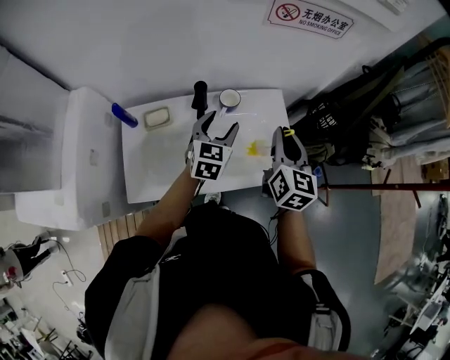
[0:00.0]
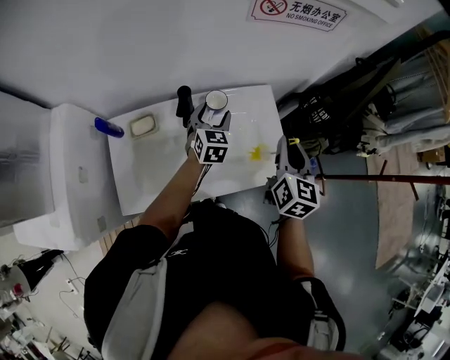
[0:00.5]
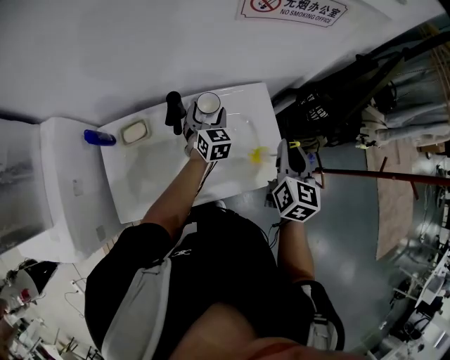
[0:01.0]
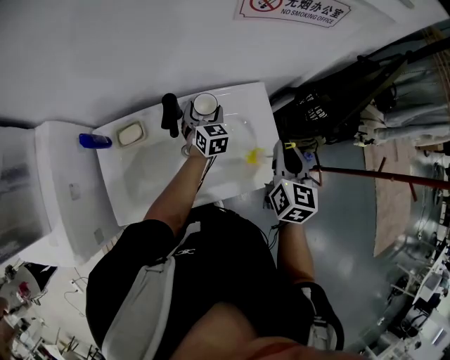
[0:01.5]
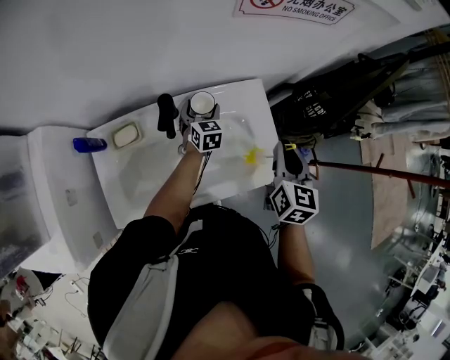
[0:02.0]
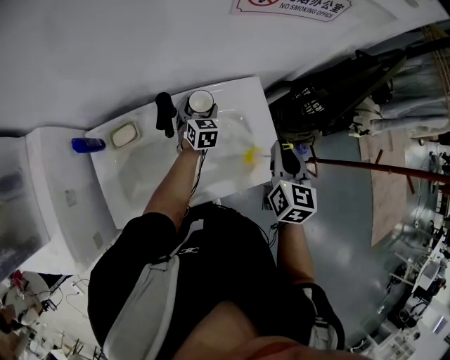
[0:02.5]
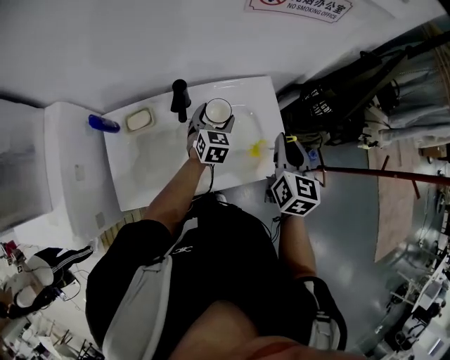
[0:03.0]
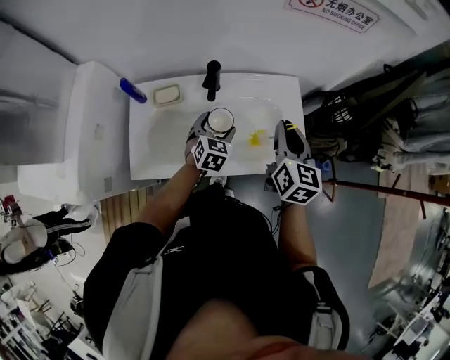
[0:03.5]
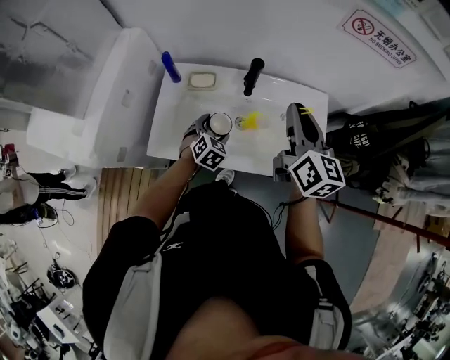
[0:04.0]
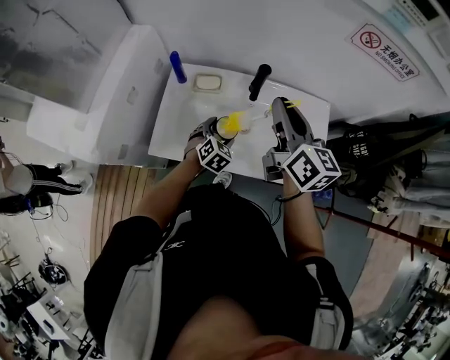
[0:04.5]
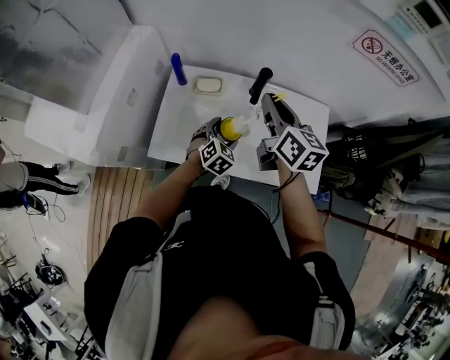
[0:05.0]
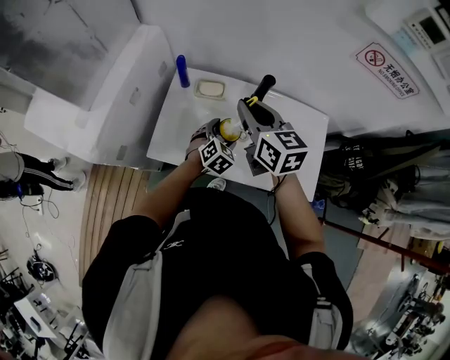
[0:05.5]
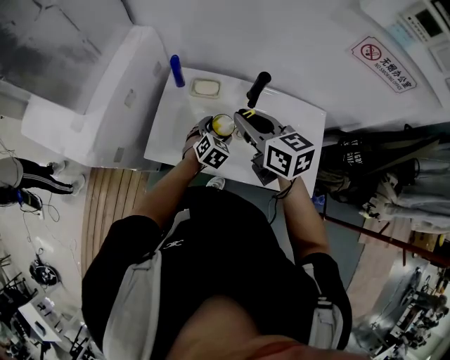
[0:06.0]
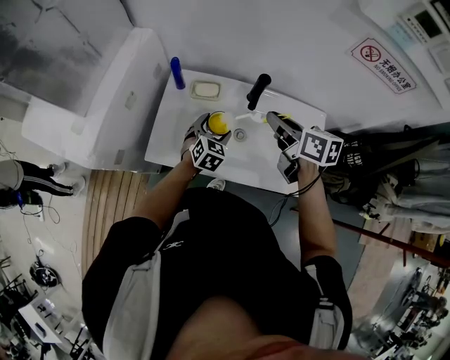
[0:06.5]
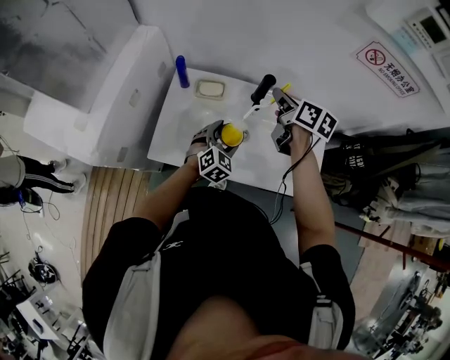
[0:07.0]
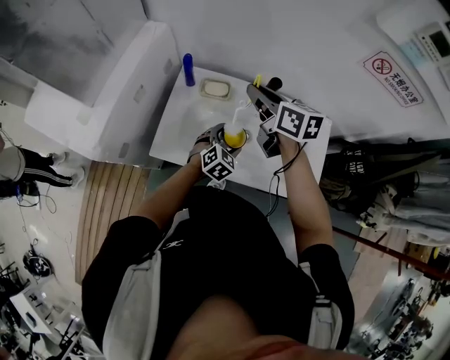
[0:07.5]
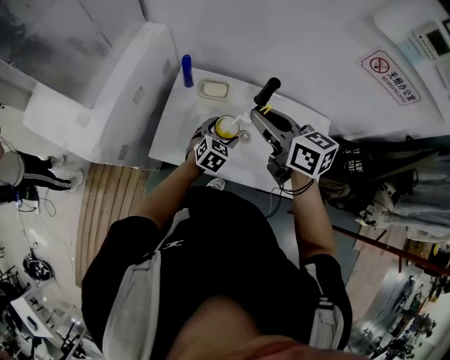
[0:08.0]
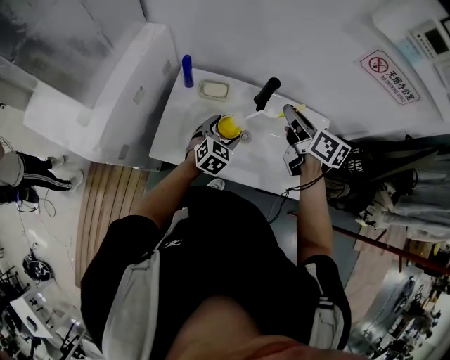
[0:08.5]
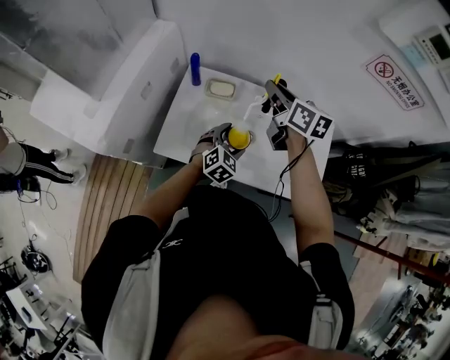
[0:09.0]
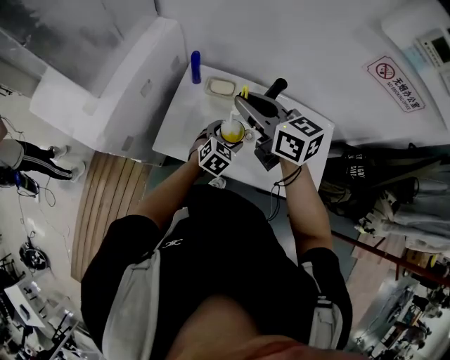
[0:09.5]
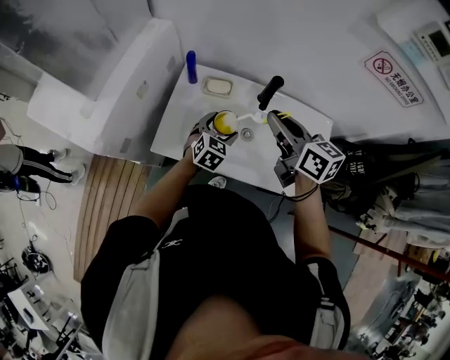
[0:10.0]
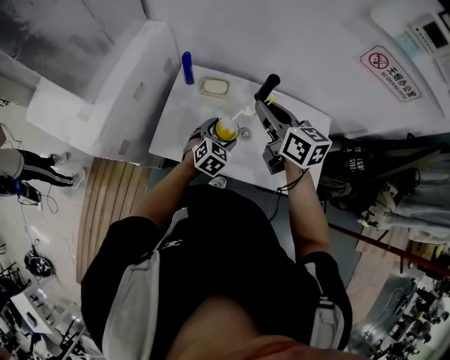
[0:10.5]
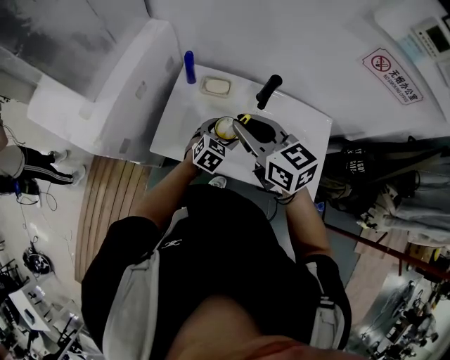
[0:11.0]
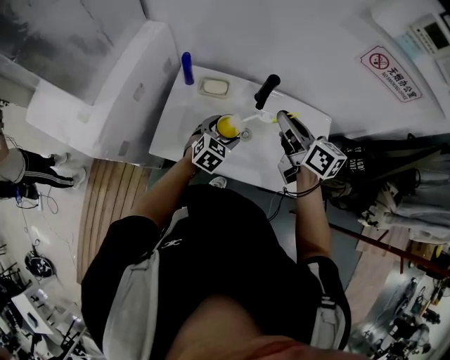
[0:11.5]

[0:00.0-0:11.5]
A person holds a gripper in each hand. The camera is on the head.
0:00.0 to 0:02.0: The left gripper travels downward and forward by some 20 cm. The right gripper goes approximately 10 cm to the right and downward.
0:02.0 to 0:04.0: The left gripper travels backward and to the left by about 30 cm, and swivels approximately 20 degrees. The right gripper travels to the left and upward by roughly 20 cm, and changes its angle by some 40 degrees.
0:04.0 to 0:06.0: The right gripper travels to the left by some 15 cm, and swivels some 40 degrees.
0:06.0 to 0:07.5: The right gripper goes approximately 10 cm forward, and goes to the right and returns, some 10 cm each way.
0:07.5 to 0:09.5: The right gripper shifts roughly 5 cm backward, and travels to the right and back again, about 10 cm each way.
0:09.5 to 0:11.5: The right gripper swings left and right, roughly 15 cm each way, with 2 reversals, and rotates approximately 30 degrees.

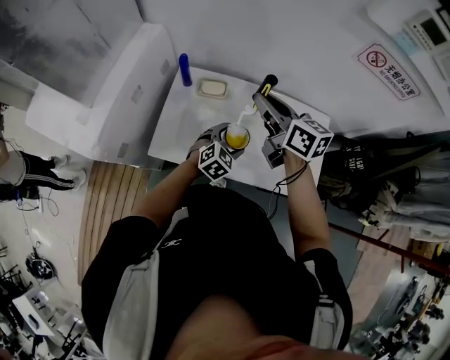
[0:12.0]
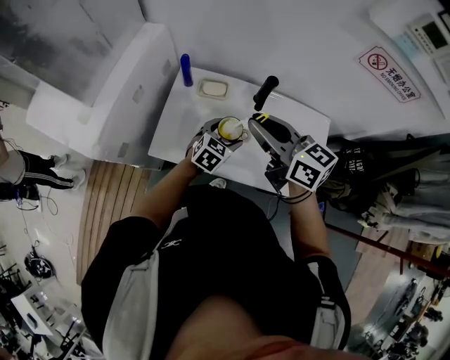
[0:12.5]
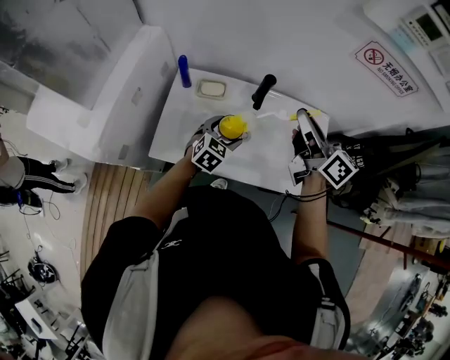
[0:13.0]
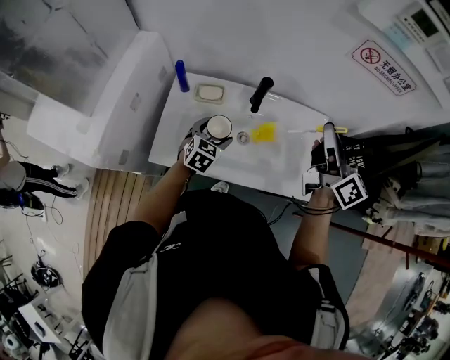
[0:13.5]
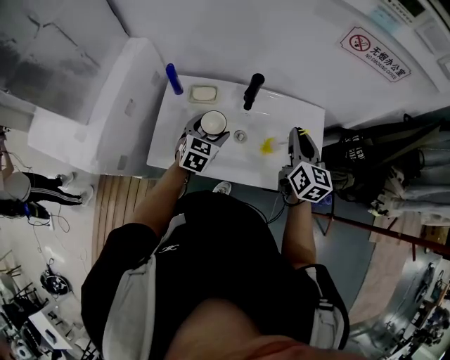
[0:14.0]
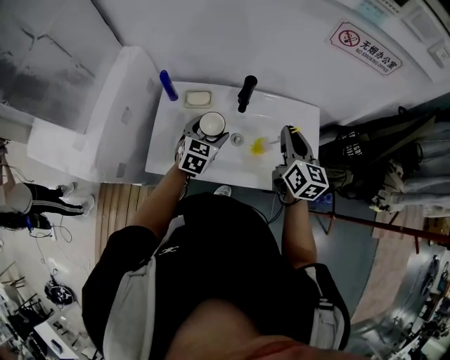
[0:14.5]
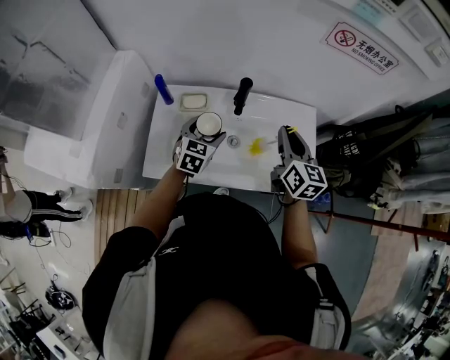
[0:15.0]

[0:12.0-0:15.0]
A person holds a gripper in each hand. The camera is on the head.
0:12.0 to 0:13.5: The right gripper travels to the right by some 20 cm, and changes its angle by about 30 degrees; the left gripper goes roughly 5 cm to the left.
0:13.5 to 0:15.0: The right gripper moves downward, about 10 cm, and rotates approximately 30 degrees.

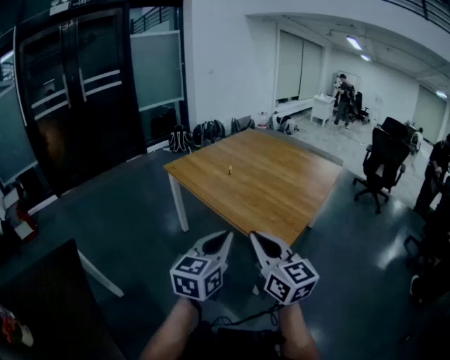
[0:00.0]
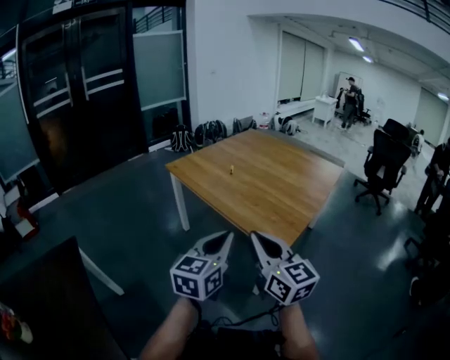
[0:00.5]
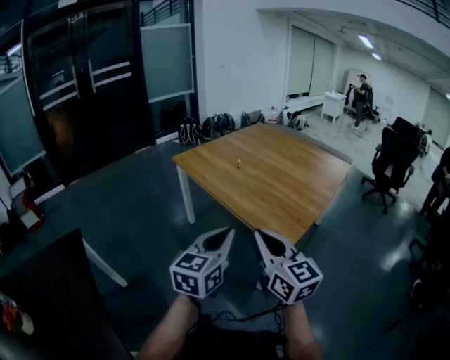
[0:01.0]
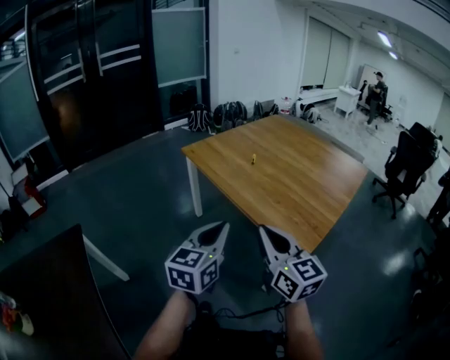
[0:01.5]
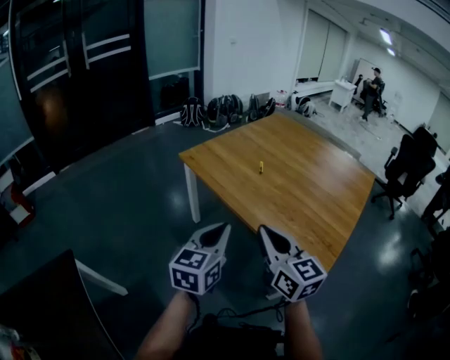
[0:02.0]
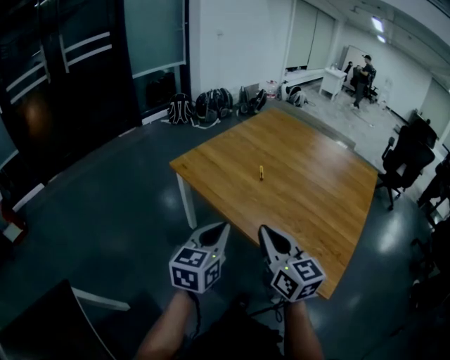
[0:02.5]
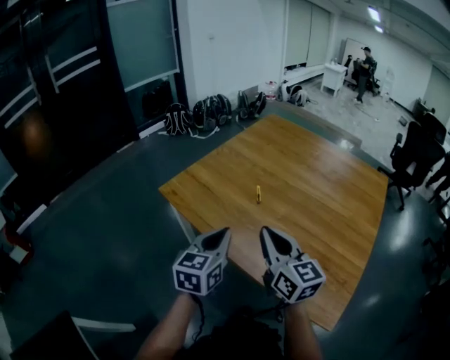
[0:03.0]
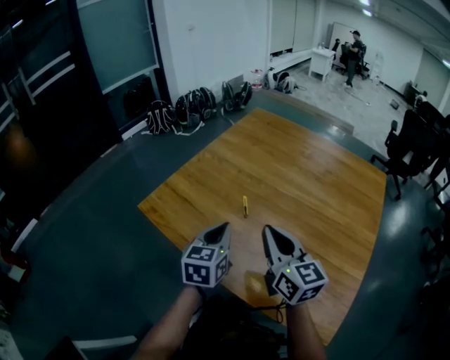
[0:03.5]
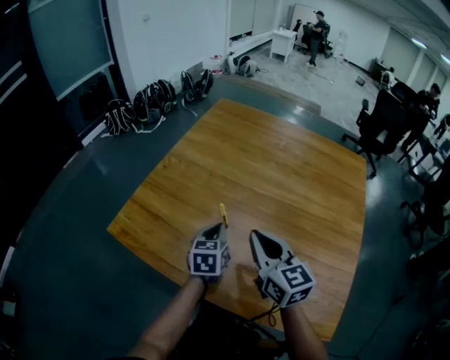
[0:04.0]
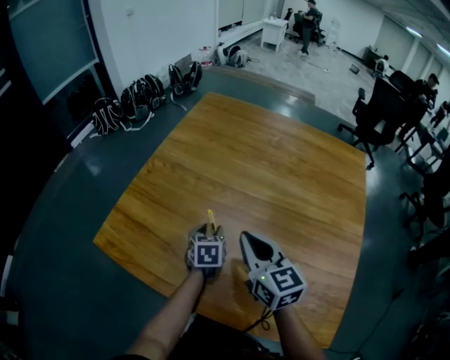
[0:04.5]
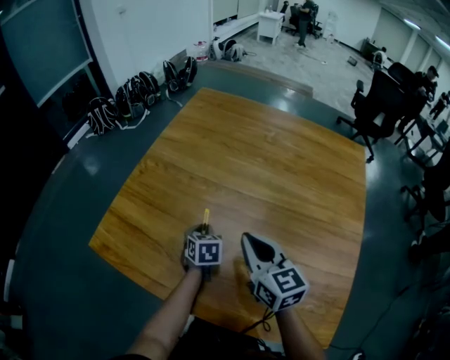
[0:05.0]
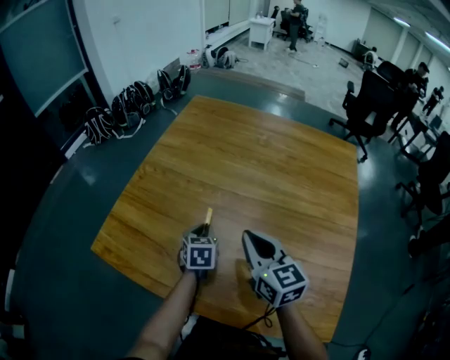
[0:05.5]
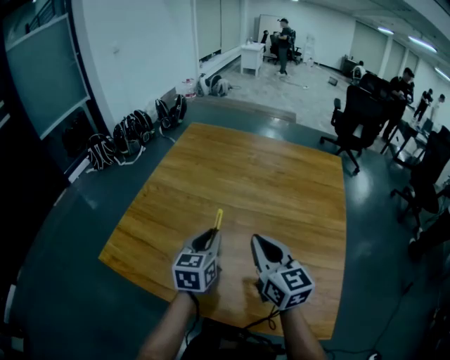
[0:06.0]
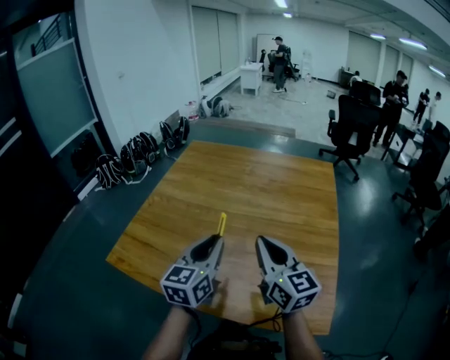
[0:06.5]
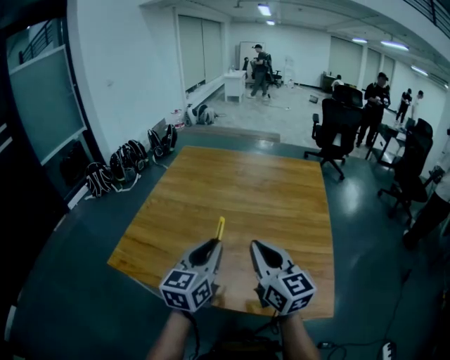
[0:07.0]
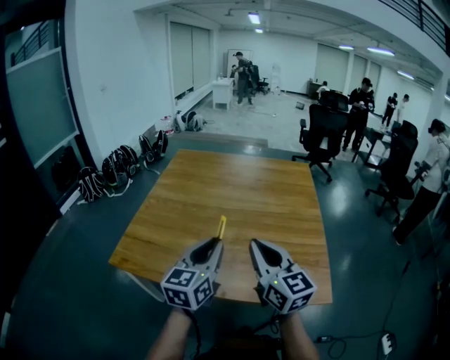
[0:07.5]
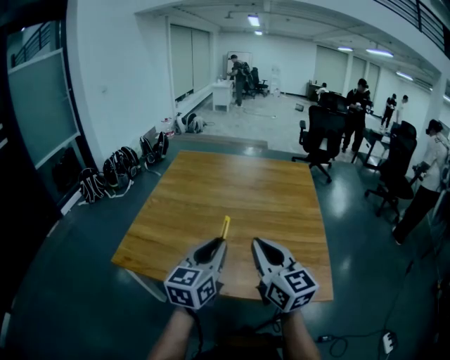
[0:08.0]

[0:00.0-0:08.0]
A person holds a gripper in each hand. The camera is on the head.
0:00.0 to 0:02.0: Both grippers move forward and to the left, roughly 25 cm.
0:02.0 to 0:04.0: The pair of grippers is taken forward, approximately 40 cm. The left gripper changes its angle by about 30 degrees. Meanwhile the right gripper turns by some 20 degrees.
0:04.0 to 0:06.0: The left gripper moves upward and to the right, approximately 10 cm, and opens, then closes again. The right gripper heads to the right, covering some 5 cm.
0:06.0 to 0:08.0: The left gripper goes about 20 cm backward and upward, and turns by approximately 20 degrees; the right gripper goes about 20 cm backward.

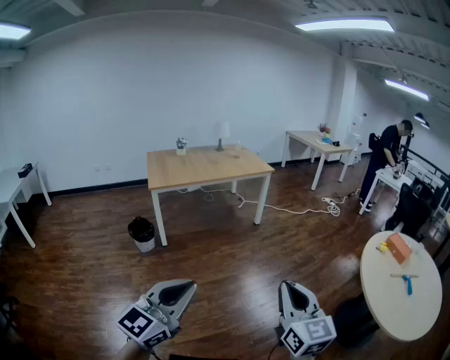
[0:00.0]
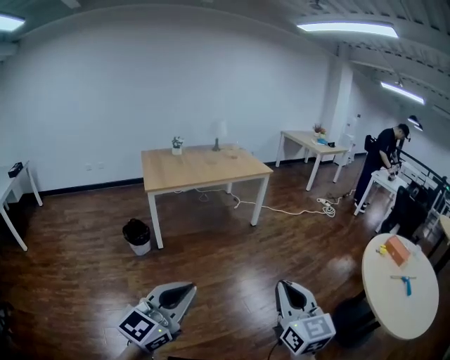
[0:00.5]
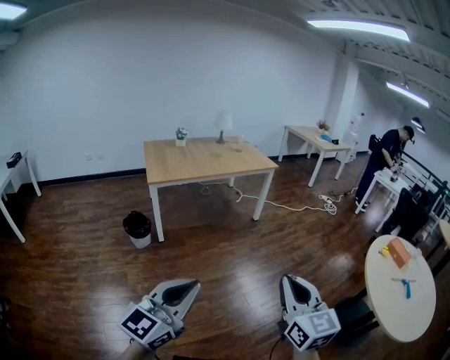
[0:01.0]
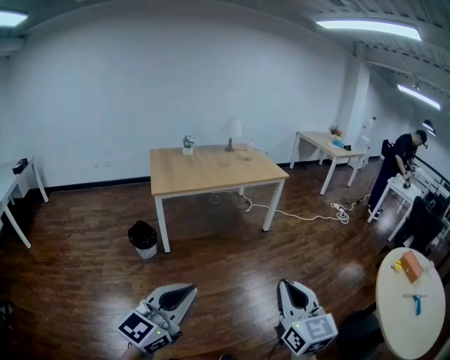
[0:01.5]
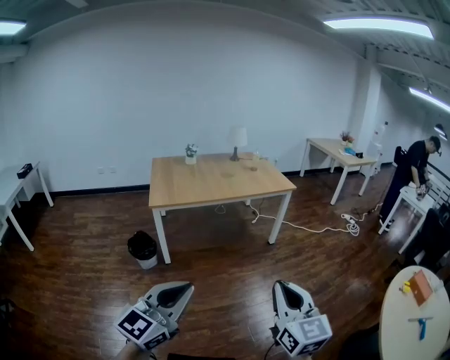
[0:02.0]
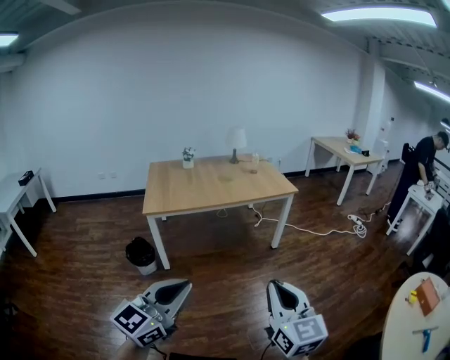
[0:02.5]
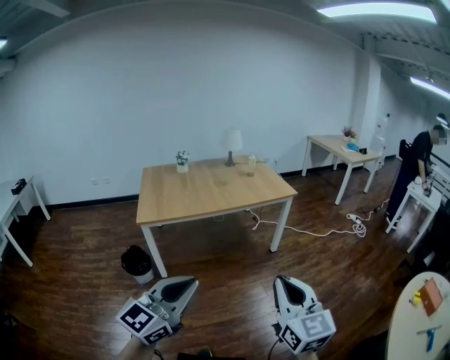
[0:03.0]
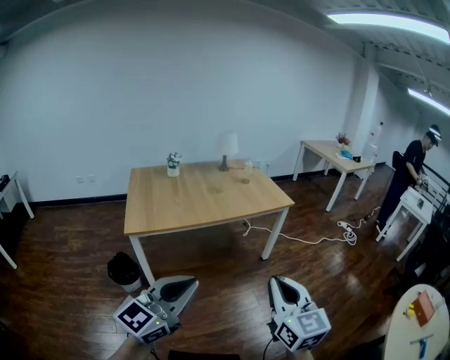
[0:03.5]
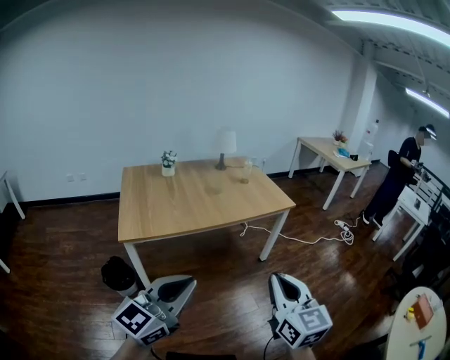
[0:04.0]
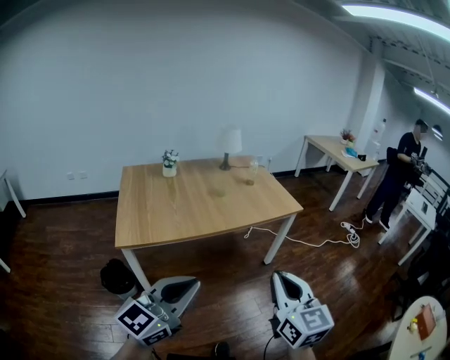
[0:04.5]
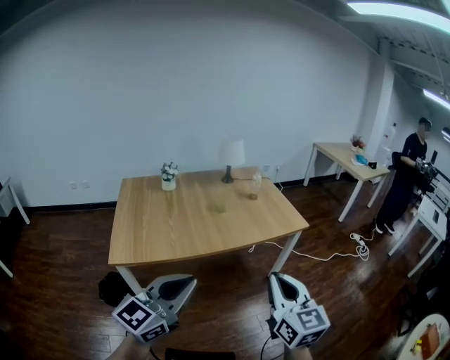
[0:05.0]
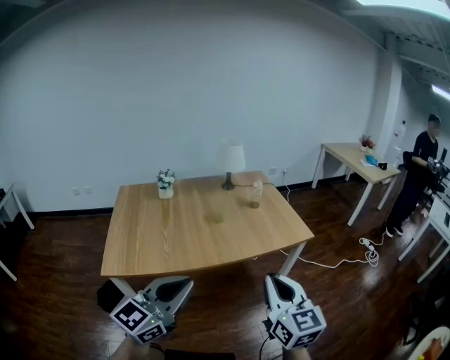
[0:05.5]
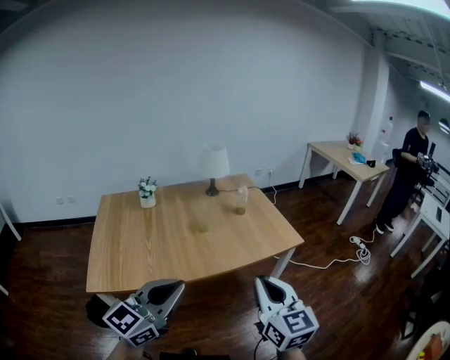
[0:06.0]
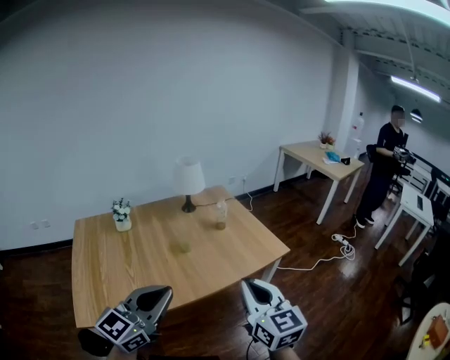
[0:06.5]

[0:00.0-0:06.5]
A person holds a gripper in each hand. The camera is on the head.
0:00.0 to 0:02.0: Both grippers move forward, about 25 cm.
0:02.0 to 0:04.5: The two grippers travel together, forward, roughly 40 cm.
0:04.5 to 0:06.5: Both grippers move forward, about 35 cm.
